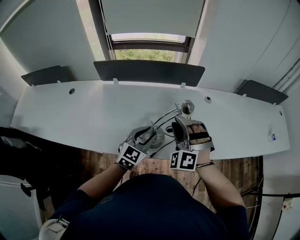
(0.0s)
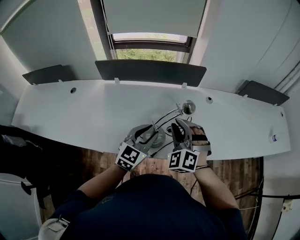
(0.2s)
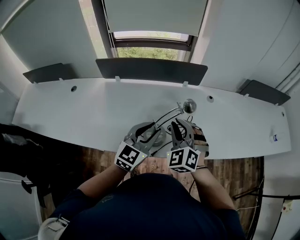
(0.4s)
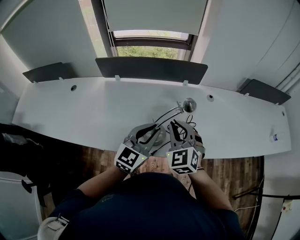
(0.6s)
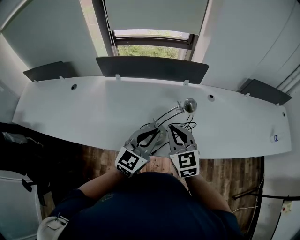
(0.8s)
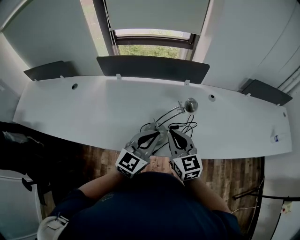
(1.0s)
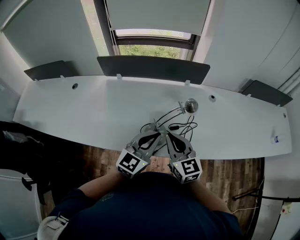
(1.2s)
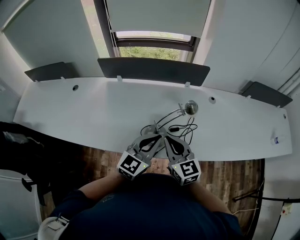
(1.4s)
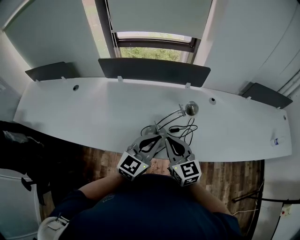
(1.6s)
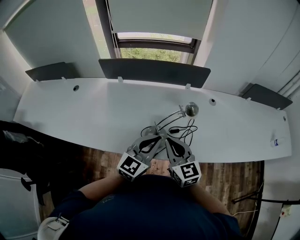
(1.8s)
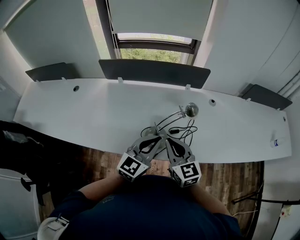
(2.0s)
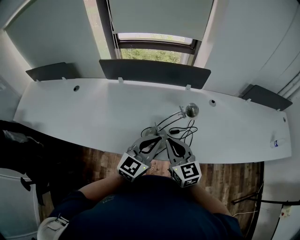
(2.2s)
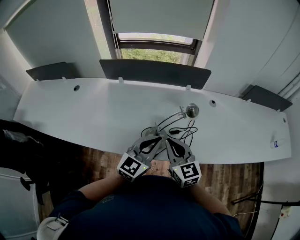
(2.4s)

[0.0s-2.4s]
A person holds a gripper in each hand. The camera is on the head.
0.0s to 1.2s: The right gripper shifts roughly 5 cm backward, twists roughly 80 degrees clockwise, seen from behind, and closes. The left gripper moves upward, roughly 5 cm, and closes its fingers.
1.2s to 2.4s: Both grippers stay about where they are.

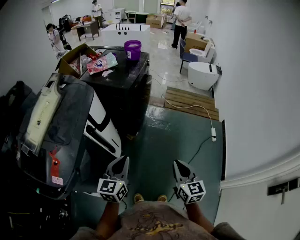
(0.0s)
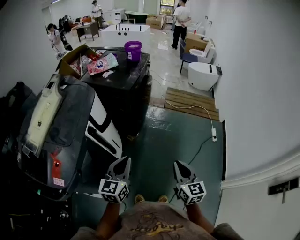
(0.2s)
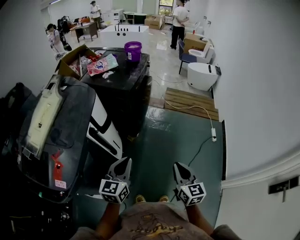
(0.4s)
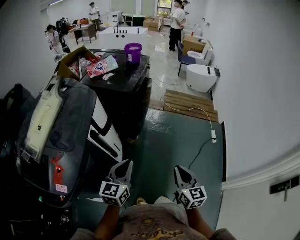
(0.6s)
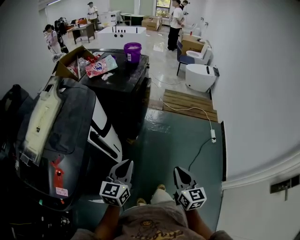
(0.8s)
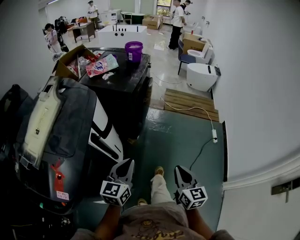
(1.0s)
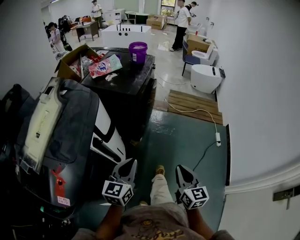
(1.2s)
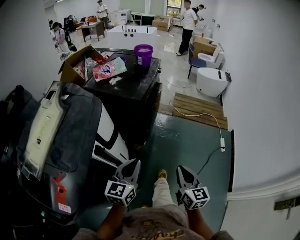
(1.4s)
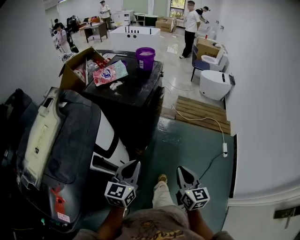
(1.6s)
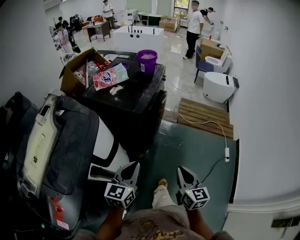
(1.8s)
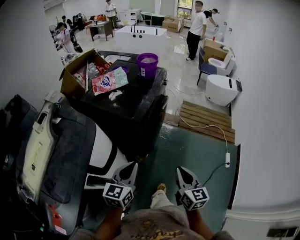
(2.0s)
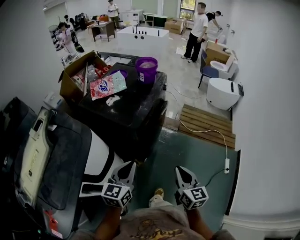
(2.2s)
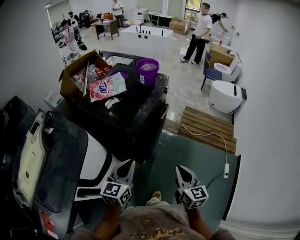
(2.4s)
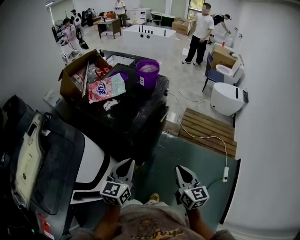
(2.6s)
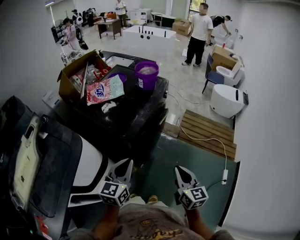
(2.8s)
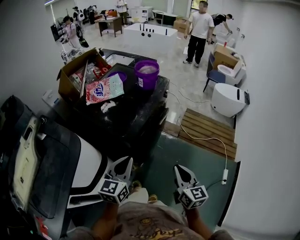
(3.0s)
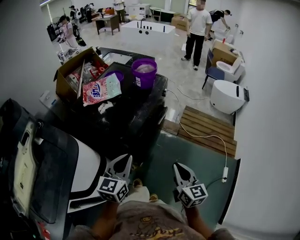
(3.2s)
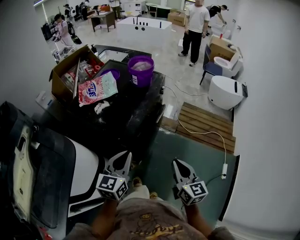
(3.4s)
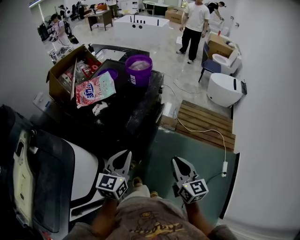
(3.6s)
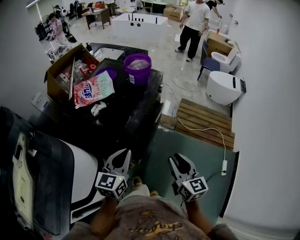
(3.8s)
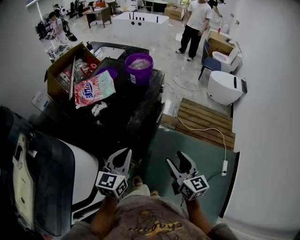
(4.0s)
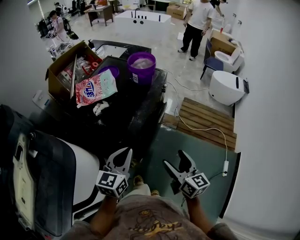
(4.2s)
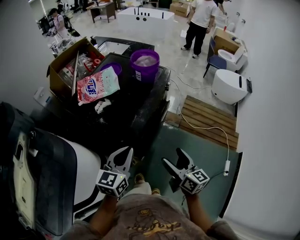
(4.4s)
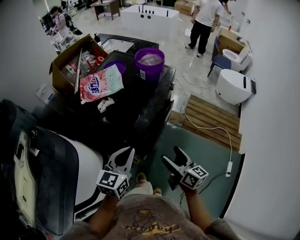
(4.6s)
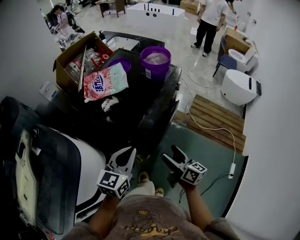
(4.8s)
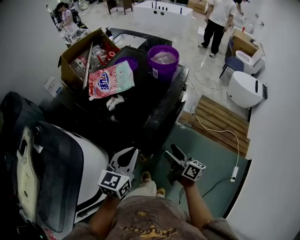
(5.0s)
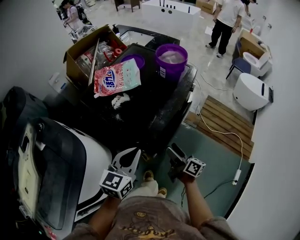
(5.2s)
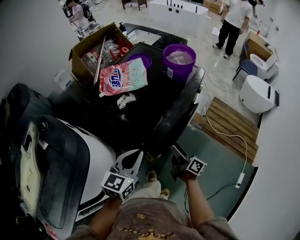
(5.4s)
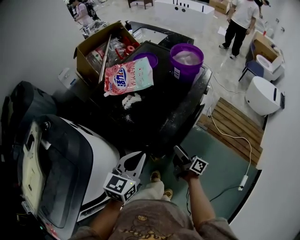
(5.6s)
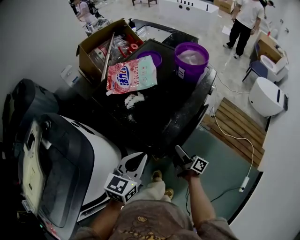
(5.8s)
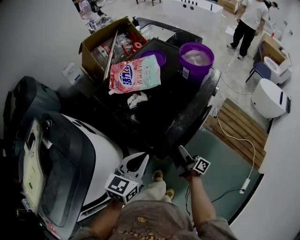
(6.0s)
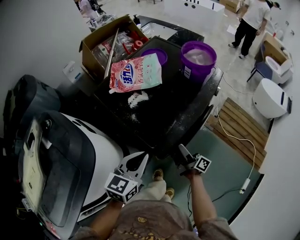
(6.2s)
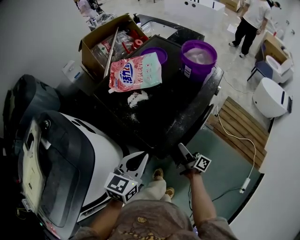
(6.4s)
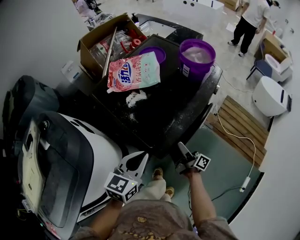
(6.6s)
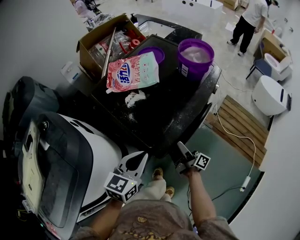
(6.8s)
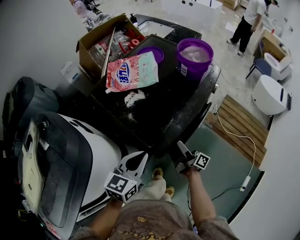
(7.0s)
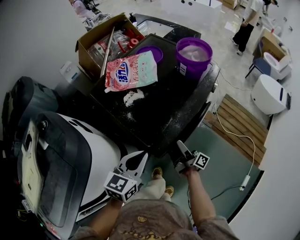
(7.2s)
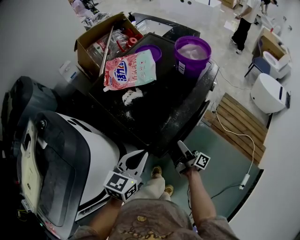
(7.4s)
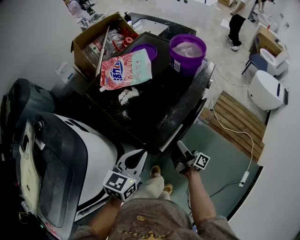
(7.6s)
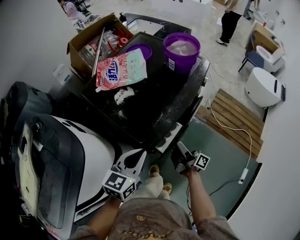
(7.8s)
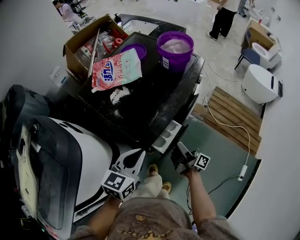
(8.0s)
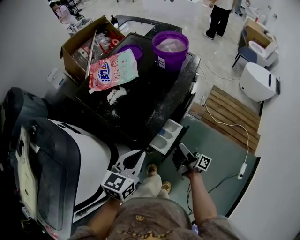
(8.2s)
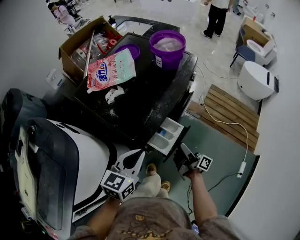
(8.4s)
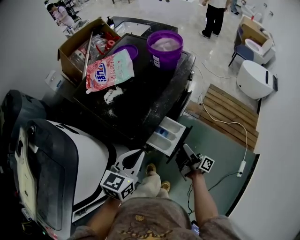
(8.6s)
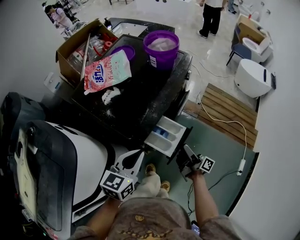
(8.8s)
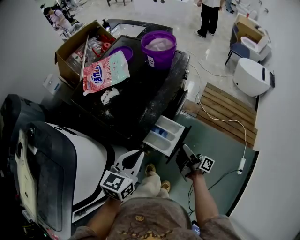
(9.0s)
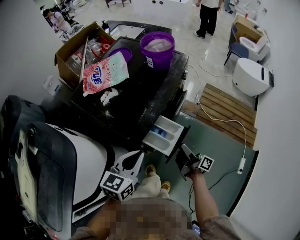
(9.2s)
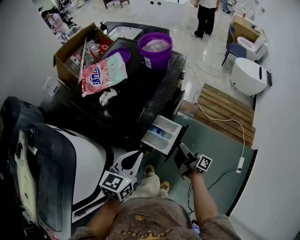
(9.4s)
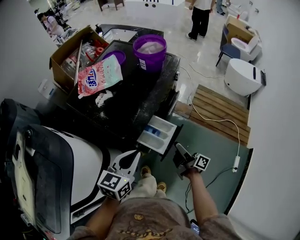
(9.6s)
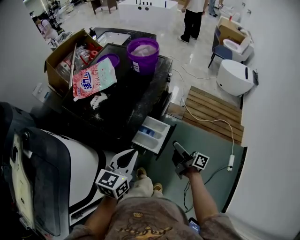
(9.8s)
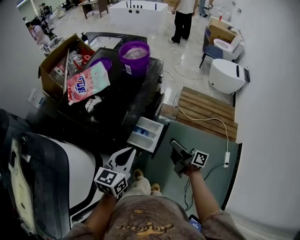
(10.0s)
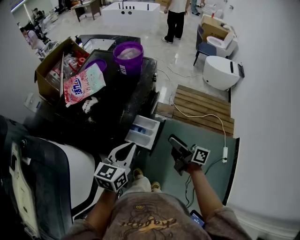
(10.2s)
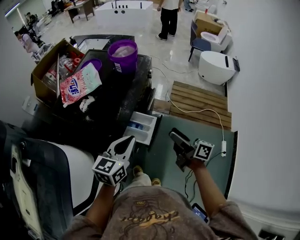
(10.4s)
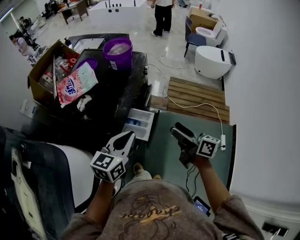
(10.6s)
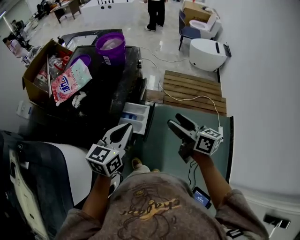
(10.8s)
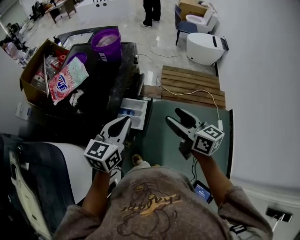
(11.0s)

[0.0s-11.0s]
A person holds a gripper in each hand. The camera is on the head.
0.0s to 1.6s: The left gripper is displaced forward by about 15 cm. Meanwhile the right gripper shifts roughly 15 cm forward and to the left.
1.6s to 3.2s: Both grippers move forward, approximately 30 cm.
3.2s to 4.8s: The left gripper travels forward by roughly 10 cm; the right gripper is displaced forward, downward and to the left by approximately 15 cm, turns by roughly 40 degrees, and opens up.
4.8s to 6.2s: The left gripper is displaced to the left by roughly 5 cm. The right gripper moves forward, downward and to the left, about 15 cm, and changes its angle by roughly 30 degrees.
6.2s to 7.8s: The grippers move only a little.
7.8s to 9.4s: The right gripper goes some 10 cm to the right and backward; the left gripper moves about 5 cm.
9.4s to 11.0s: The left gripper is displaced upward and to the right by some 10 cm, while the right gripper travels upward by some 25 cm, and rolls counterclockwise, seen from behind, by approximately 50 degrees.

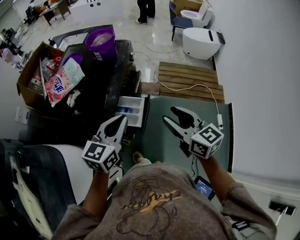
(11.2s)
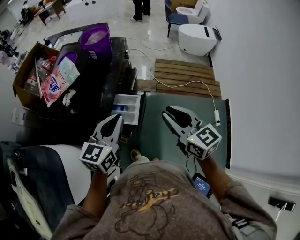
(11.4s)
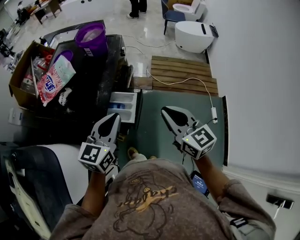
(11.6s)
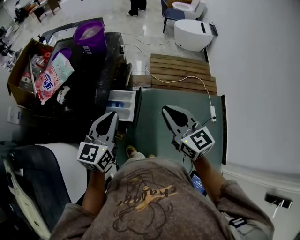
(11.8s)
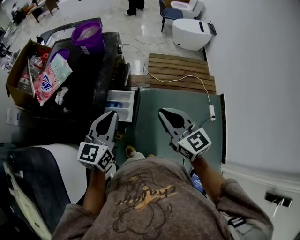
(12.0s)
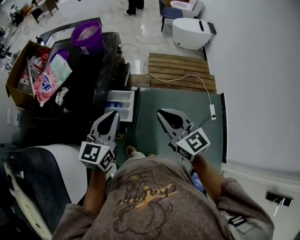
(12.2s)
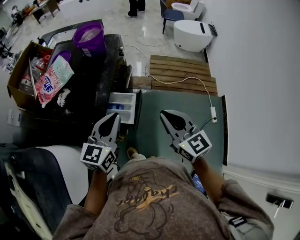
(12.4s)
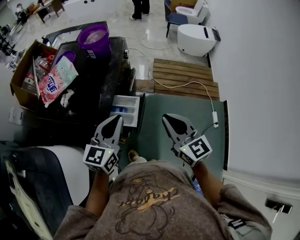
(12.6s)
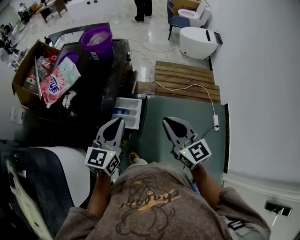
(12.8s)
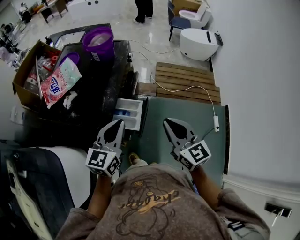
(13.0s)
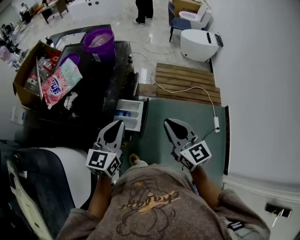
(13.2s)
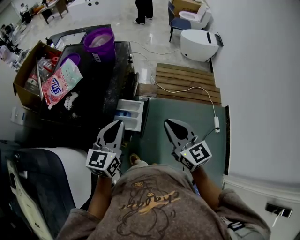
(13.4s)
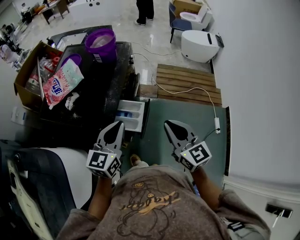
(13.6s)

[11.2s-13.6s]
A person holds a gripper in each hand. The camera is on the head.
11.2s to 12.4s: The right gripper closes up.
12.4s to 13.6s: The grippers stay close to where they were, moving slightly.

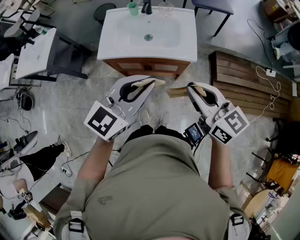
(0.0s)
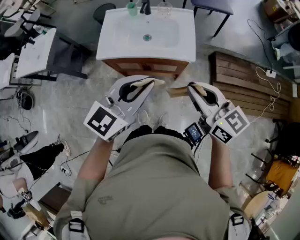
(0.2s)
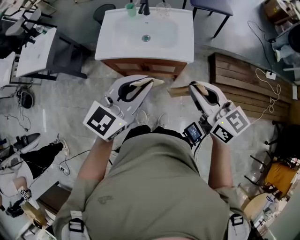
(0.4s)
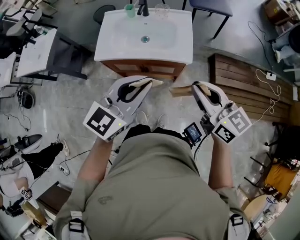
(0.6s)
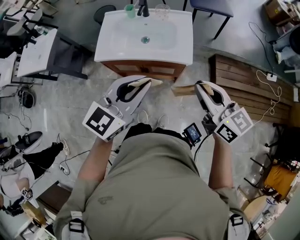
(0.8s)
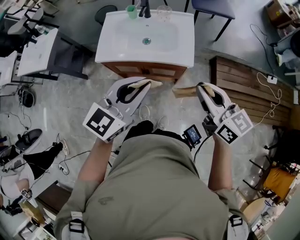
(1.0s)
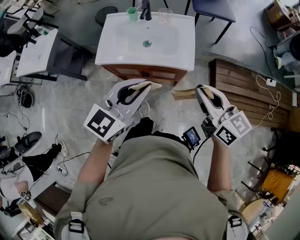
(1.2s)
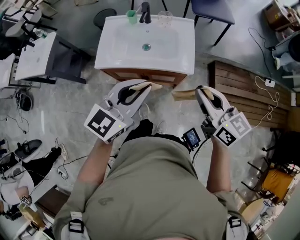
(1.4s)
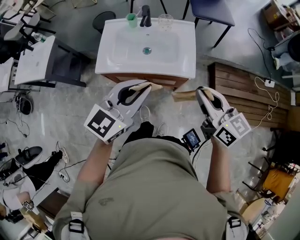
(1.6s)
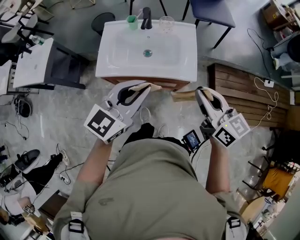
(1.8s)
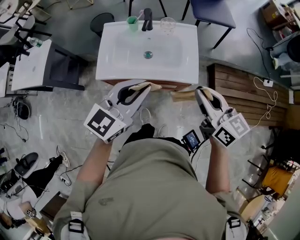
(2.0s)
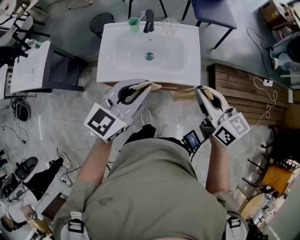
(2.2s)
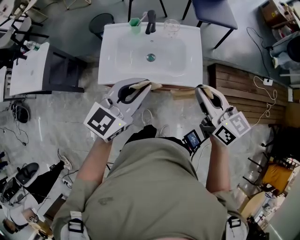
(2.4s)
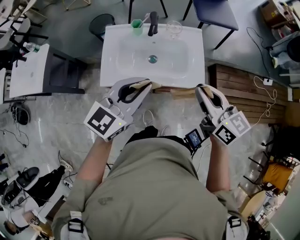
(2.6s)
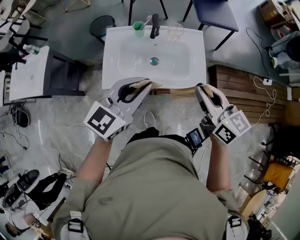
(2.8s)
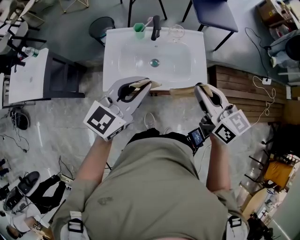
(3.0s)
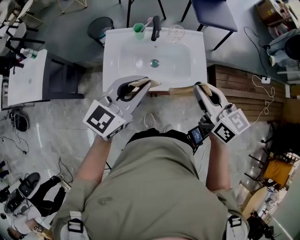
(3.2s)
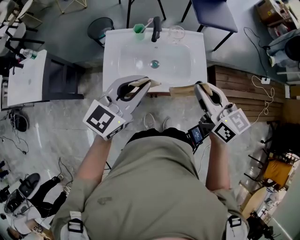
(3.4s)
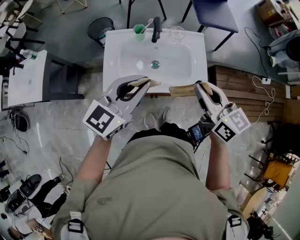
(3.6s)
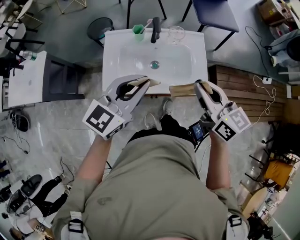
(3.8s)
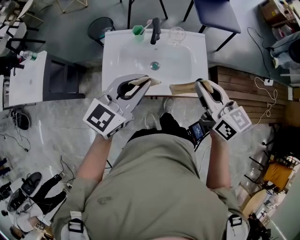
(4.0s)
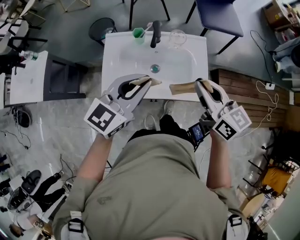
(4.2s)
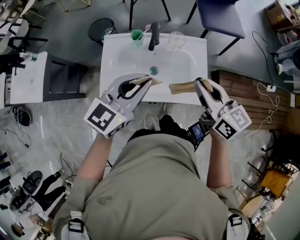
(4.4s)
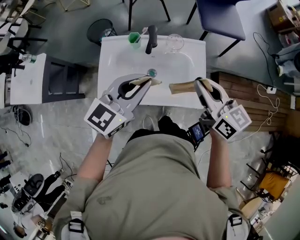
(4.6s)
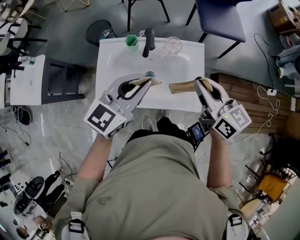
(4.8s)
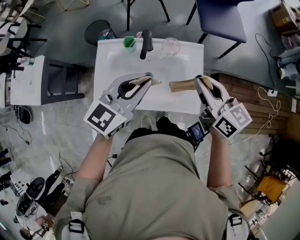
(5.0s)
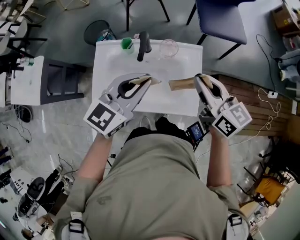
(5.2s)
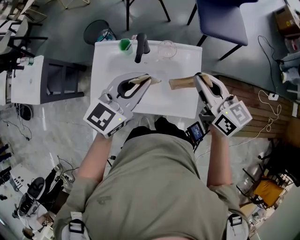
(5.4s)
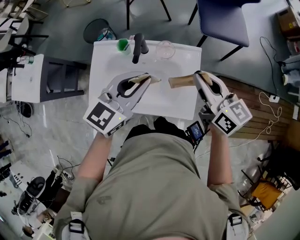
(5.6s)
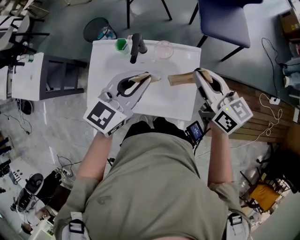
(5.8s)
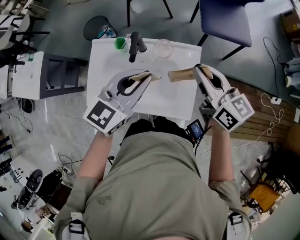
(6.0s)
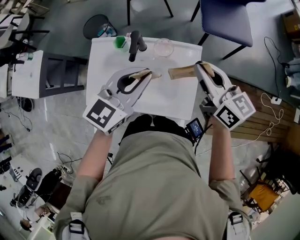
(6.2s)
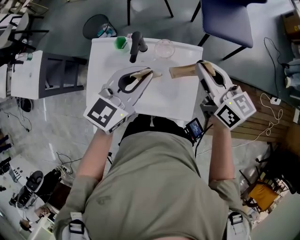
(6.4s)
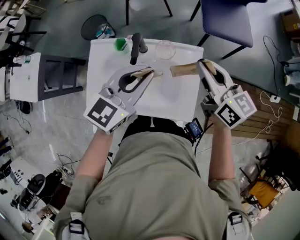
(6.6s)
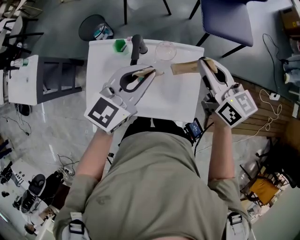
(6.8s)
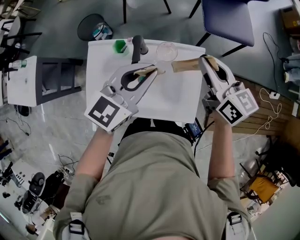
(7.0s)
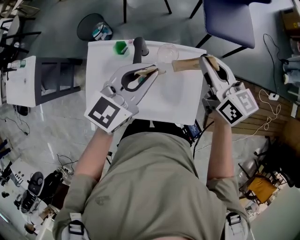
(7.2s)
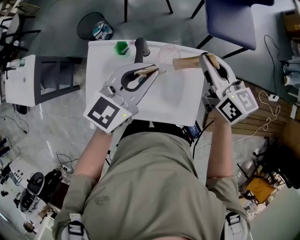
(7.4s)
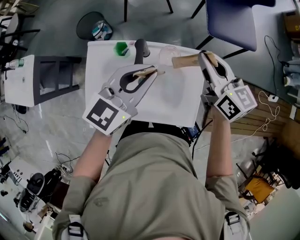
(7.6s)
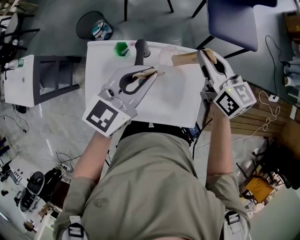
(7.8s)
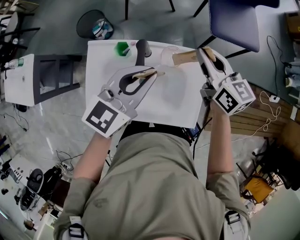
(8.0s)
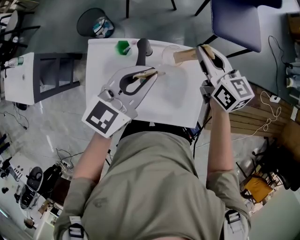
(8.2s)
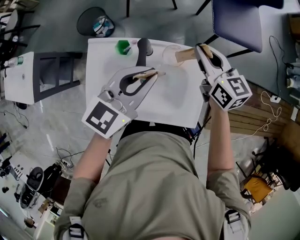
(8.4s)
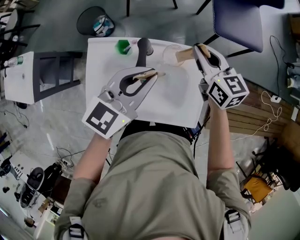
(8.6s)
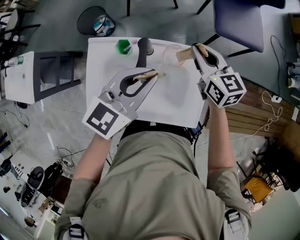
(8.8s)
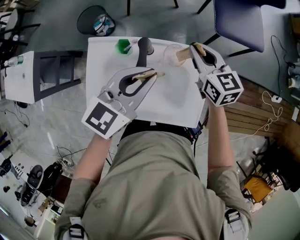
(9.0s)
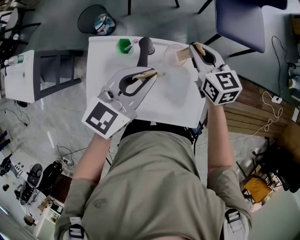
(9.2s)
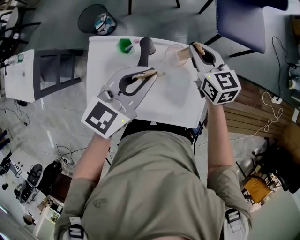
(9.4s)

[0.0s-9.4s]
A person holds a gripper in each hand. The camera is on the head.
0.0s to 1.6s: The two grippers go some 10 cm forward.
1.6s to 3.2s: Both grippers move to the left and forward, some 15 cm.
3.2s to 4.8s: The left gripper goes about 15 cm forward and to the right; the right gripper moves forward, approximately 15 cm.
4.8s to 6.2s: The left gripper heads to the right and forward, covering about 10 cm, while the right gripper travels forward and to the right by some 15 cm.
6.2s to 7.8s: The two grippers go some 10 cm forward.
7.8s to 9.4s: The right gripper goes about 10 cm downward.
